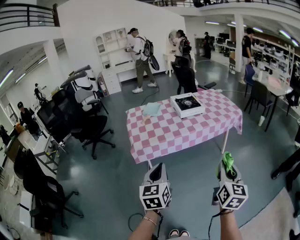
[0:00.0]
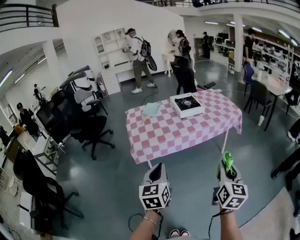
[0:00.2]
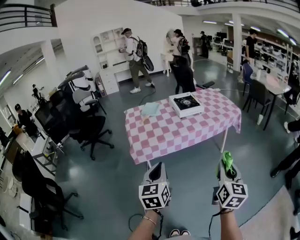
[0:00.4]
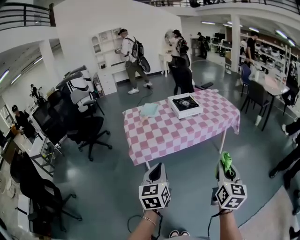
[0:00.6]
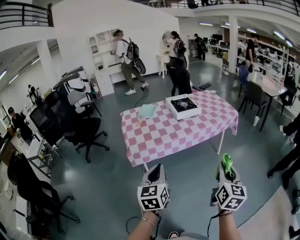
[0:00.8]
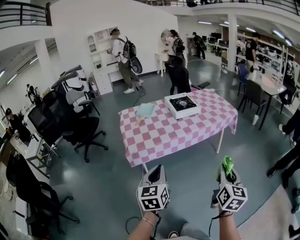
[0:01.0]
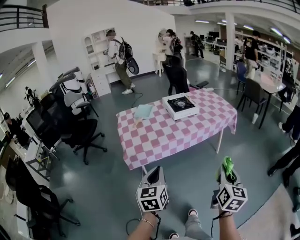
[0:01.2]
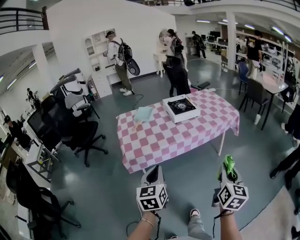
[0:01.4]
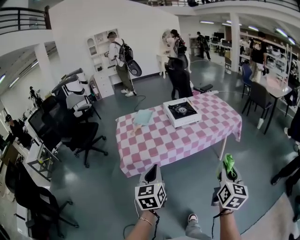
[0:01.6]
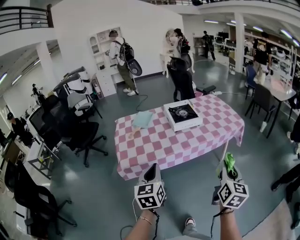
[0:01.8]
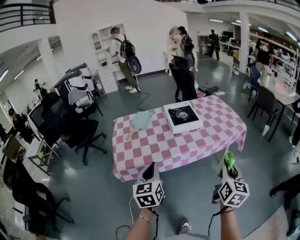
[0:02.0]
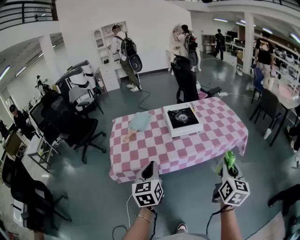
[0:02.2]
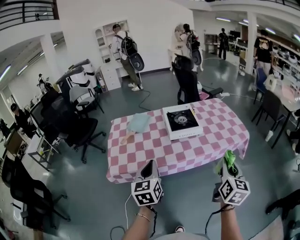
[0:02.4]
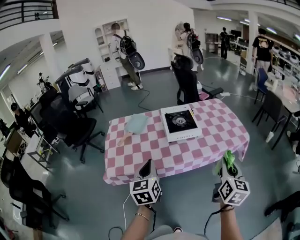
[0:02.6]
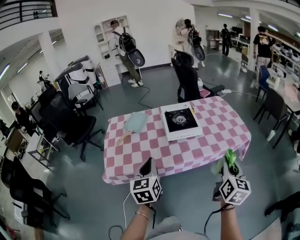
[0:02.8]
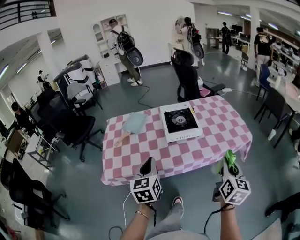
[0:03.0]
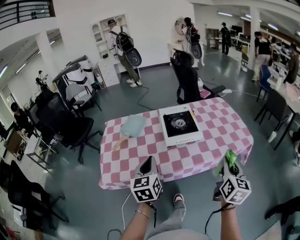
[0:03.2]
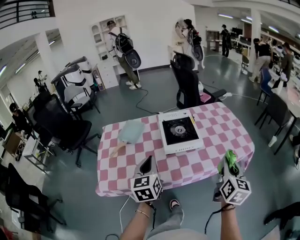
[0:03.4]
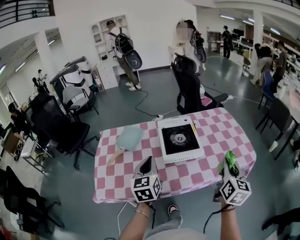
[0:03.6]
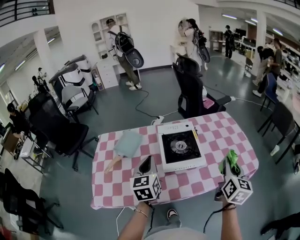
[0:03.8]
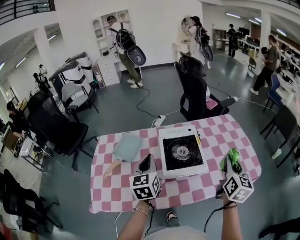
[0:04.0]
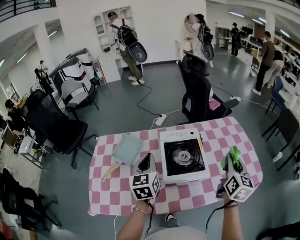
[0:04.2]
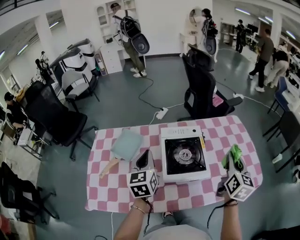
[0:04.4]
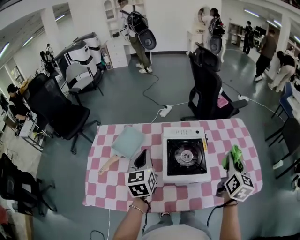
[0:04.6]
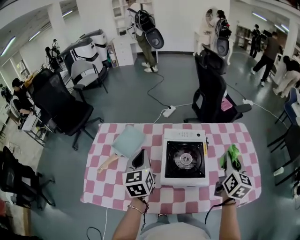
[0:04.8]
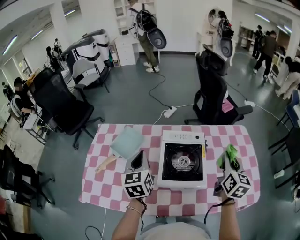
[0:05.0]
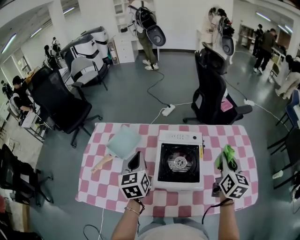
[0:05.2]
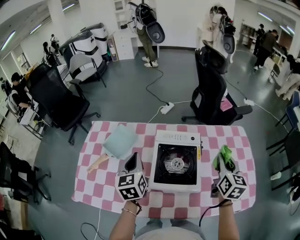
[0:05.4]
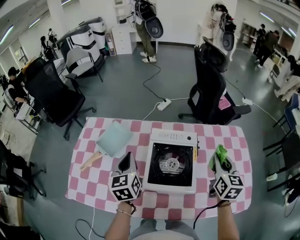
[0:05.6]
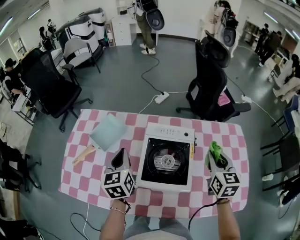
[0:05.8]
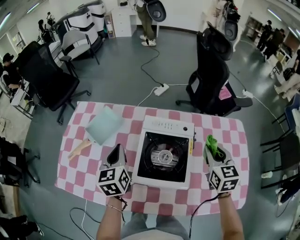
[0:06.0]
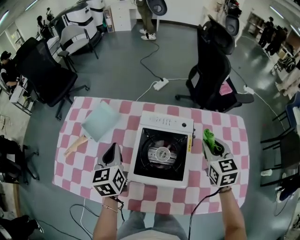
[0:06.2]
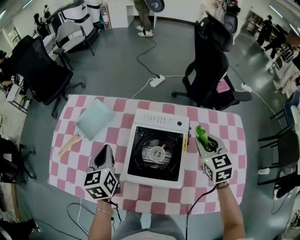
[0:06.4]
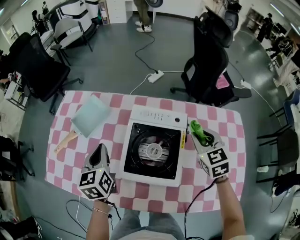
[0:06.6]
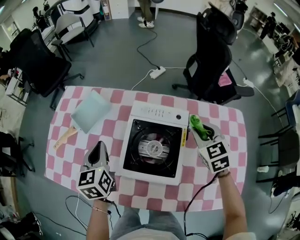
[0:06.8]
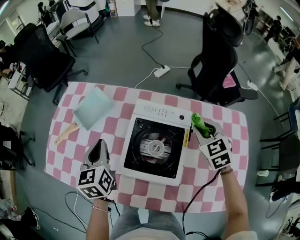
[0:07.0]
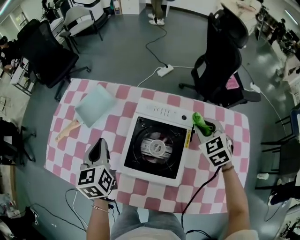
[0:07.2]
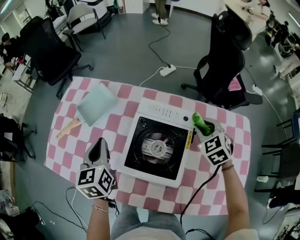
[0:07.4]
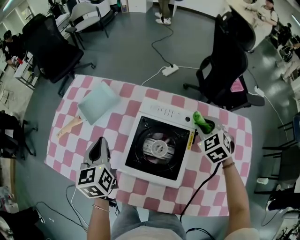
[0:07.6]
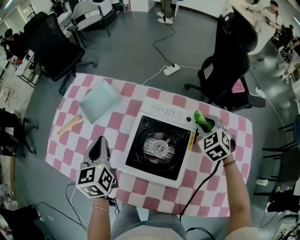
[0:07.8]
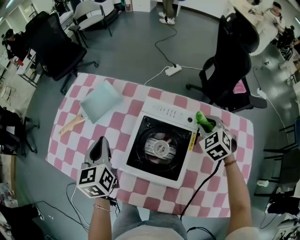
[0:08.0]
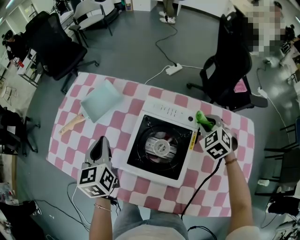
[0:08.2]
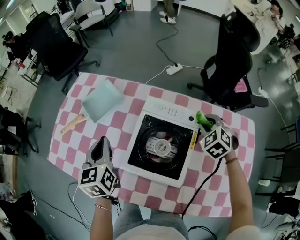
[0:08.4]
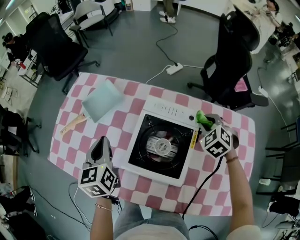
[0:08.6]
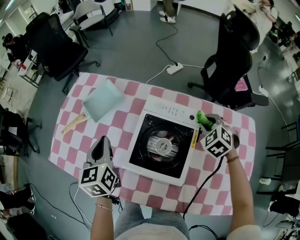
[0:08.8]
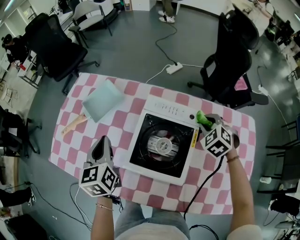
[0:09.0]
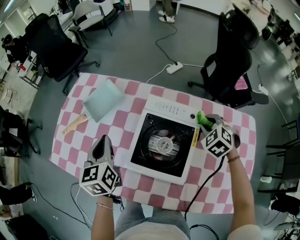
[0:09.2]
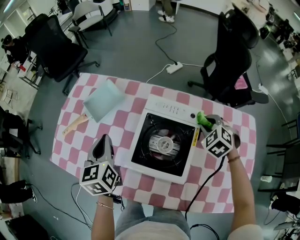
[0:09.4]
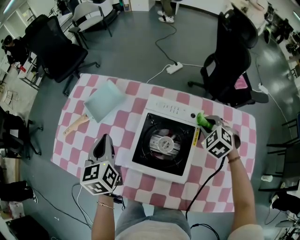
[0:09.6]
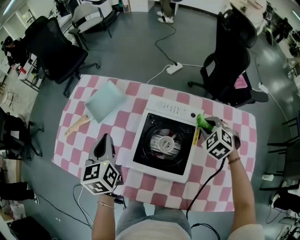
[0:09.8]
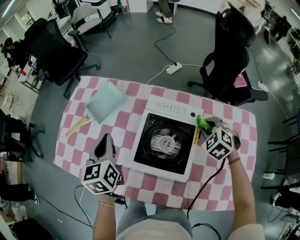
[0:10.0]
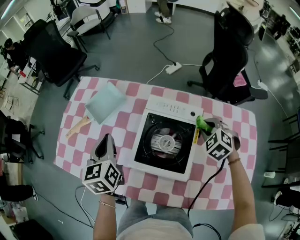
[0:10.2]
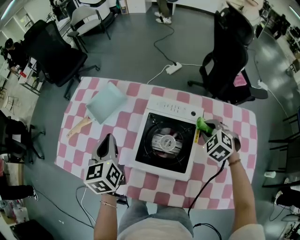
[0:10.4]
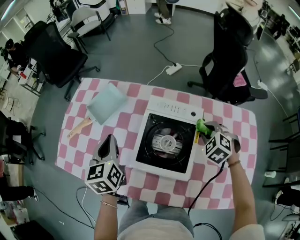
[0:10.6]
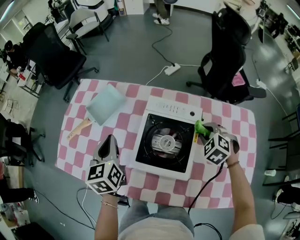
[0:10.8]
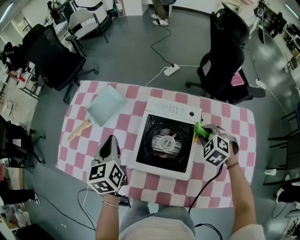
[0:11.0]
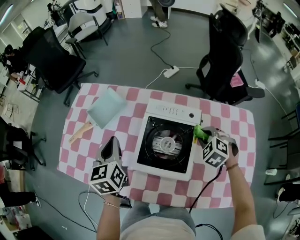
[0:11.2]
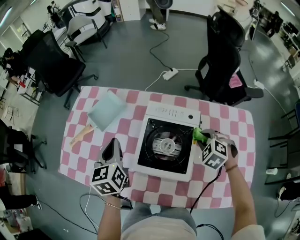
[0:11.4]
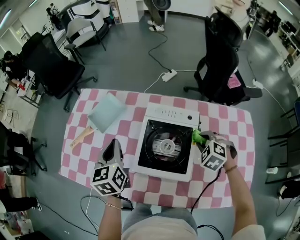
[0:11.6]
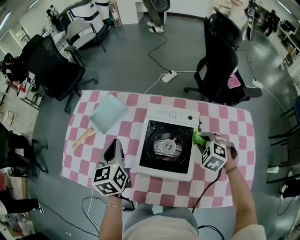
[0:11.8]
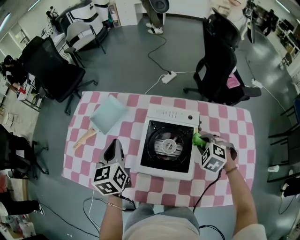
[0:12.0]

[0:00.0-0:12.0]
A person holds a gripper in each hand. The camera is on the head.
0.0 to 1.6 s: Both grippers move forward, about 15 cm.
1.6 to 3.0 s: Both grippers travel together forward, approximately 25 cm.
3.0 to 4.4 s: Both grippers travel together forward, about 35 cm.
4.4 to 6.0 s: The right gripper heads forward and downward, covering roughly 20 cm, and changes its angle by approximately 40 degrees. Meanwhile the left gripper is displaced downward by some 5 cm.
6.0 to 7.6 s: The right gripper goes approximately 15 cm forward and downward, and twists some 40 degrees counterclockwise, seen from behind.
7.6 to 10.4 s: The grippers stay close to where they were, moving slightly.
10.4 to 12.0 s: The right gripper travels backward by some 5 cm.

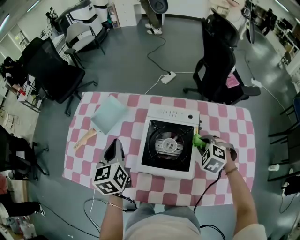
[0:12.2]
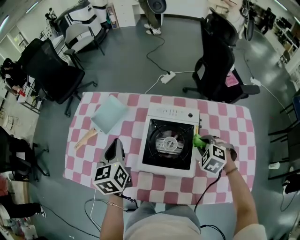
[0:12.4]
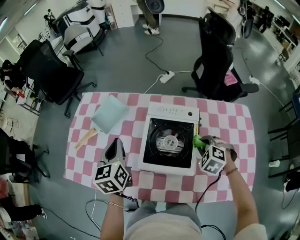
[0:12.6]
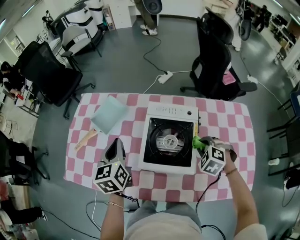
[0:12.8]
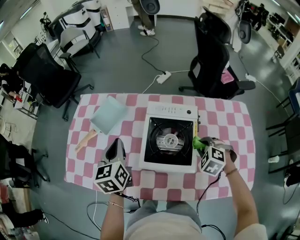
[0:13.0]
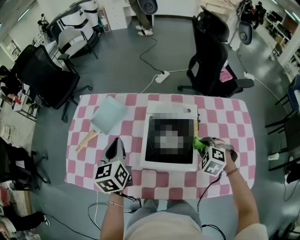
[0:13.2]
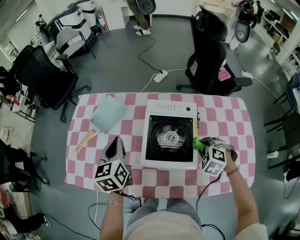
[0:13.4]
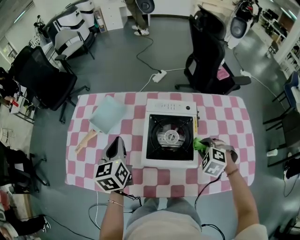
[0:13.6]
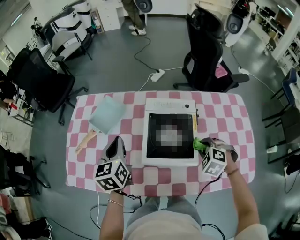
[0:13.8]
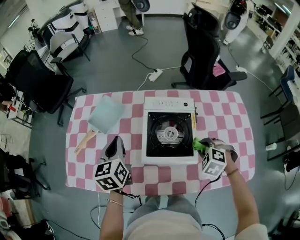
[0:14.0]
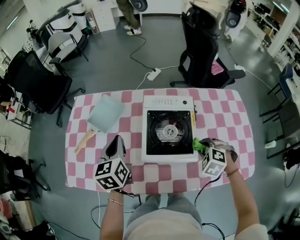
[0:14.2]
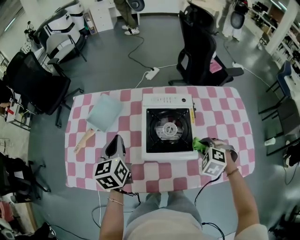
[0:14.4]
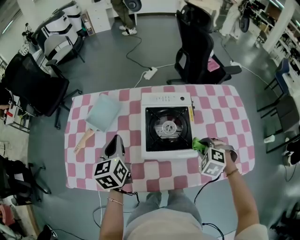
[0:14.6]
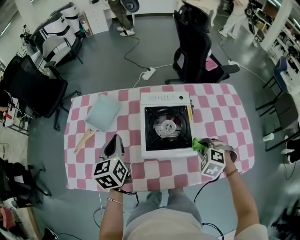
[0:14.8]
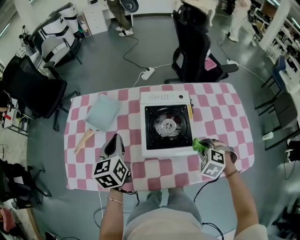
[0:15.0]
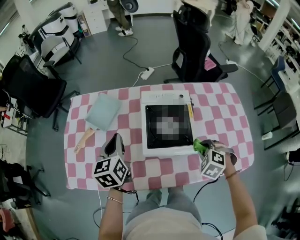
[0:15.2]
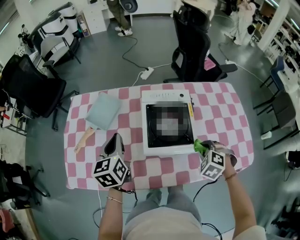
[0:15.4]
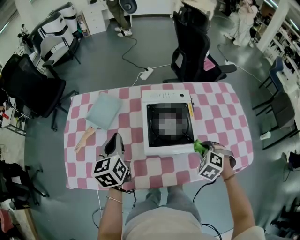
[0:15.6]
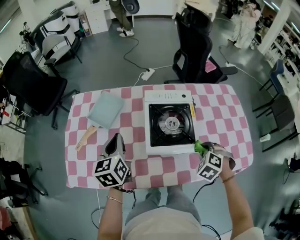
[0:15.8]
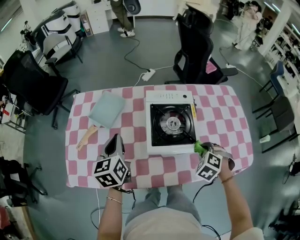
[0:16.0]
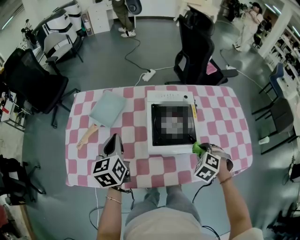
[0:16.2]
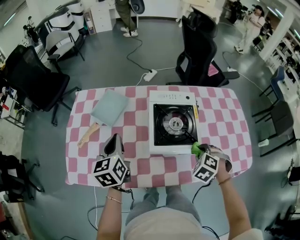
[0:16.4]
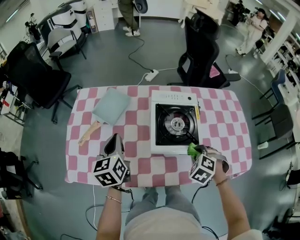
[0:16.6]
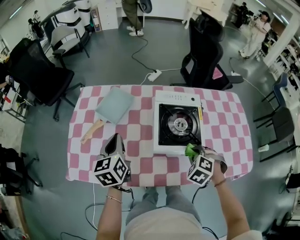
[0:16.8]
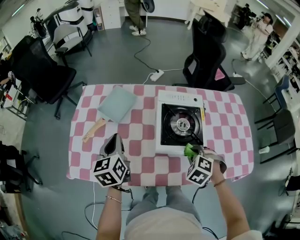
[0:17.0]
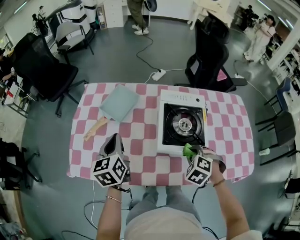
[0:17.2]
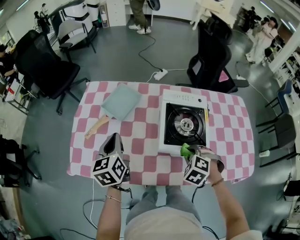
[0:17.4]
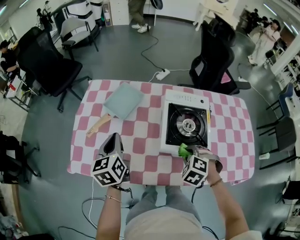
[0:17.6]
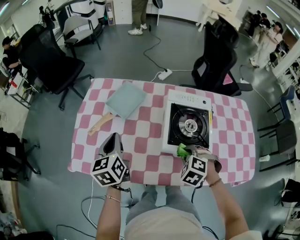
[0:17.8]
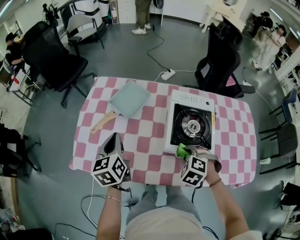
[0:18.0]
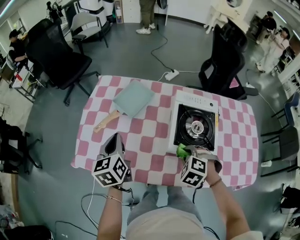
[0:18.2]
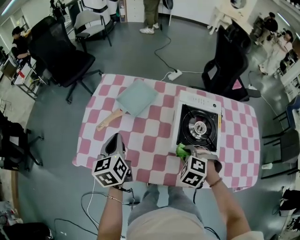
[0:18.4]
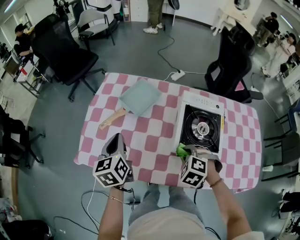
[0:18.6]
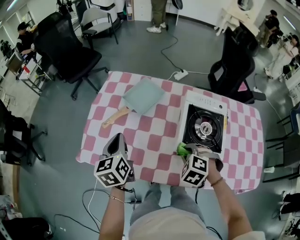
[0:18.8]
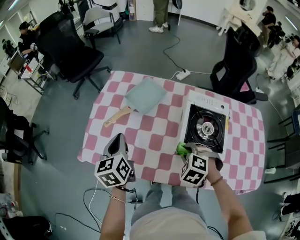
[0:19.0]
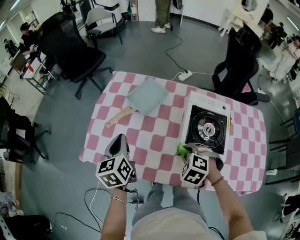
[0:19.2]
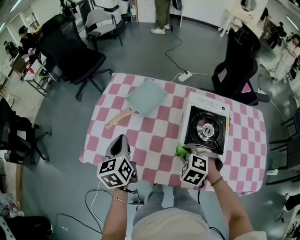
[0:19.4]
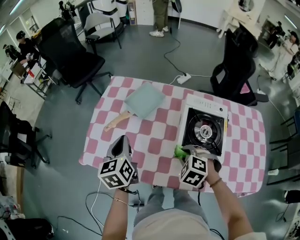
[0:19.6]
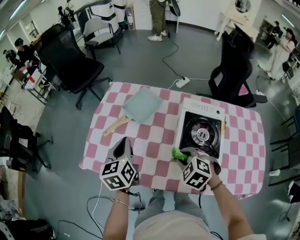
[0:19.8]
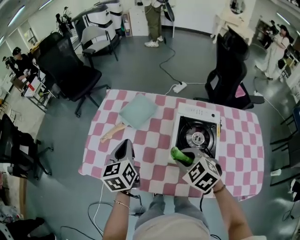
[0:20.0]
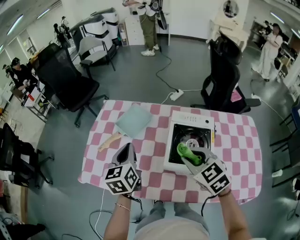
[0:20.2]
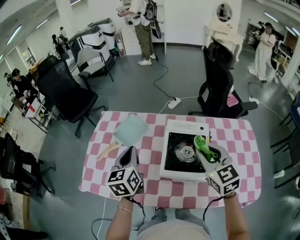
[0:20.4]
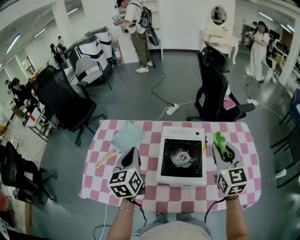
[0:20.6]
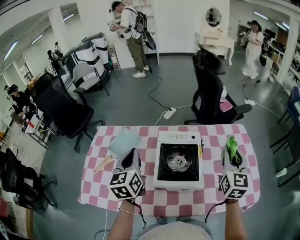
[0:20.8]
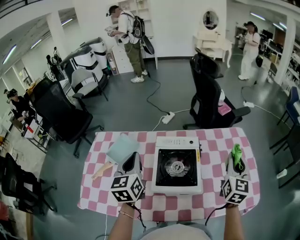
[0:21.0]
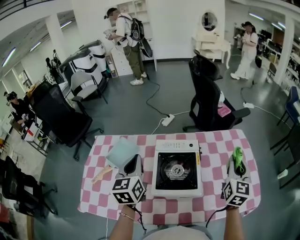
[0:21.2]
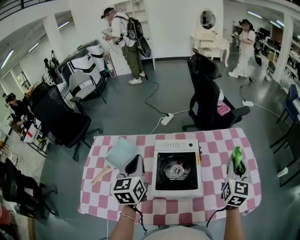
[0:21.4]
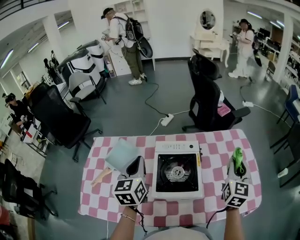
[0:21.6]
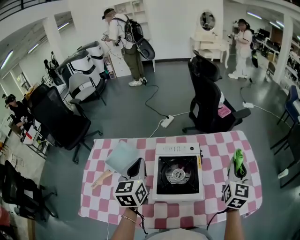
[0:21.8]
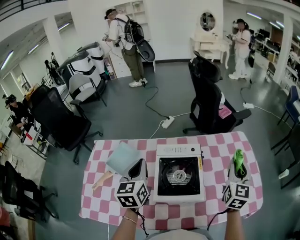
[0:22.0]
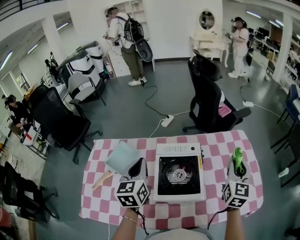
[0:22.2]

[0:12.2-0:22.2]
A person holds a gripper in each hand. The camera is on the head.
12.2 to 13.6 s: The right gripper travels backward by approximately 5 cm.
13.6 to 15.0 s: The right gripper is displaced backward by about 5 cm.
15.0 to 16.4 s: The left gripper moves approximately 5 cm.
16.4 to 18.0 s: The left gripper is displaced to the left by roughly 10 cm; the right gripper heads to the left, covering about 15 cm.
18.0 to 19.4 s: The right gripper is displaced to the left by roughly 5 cm.
19.4 to 20.8 s: The left gripper moves roughly 25 cm, and changes its angle by about 20 degrees; the right gripper shifts by about 40 cm, and tips its fingers upward by approximately 60 degrees.
20.8 to 22.2 s: The left gripper shifts approximately 5 cm forward.

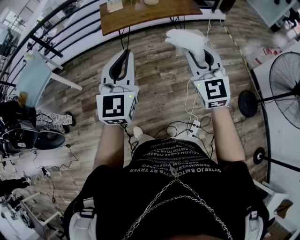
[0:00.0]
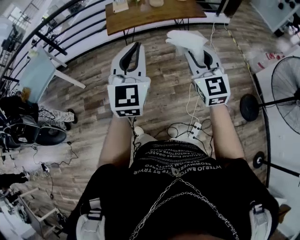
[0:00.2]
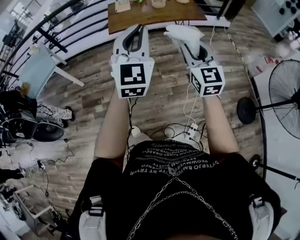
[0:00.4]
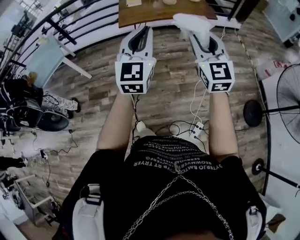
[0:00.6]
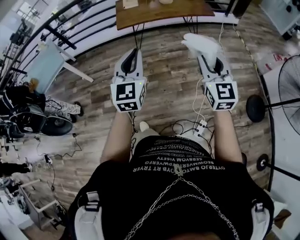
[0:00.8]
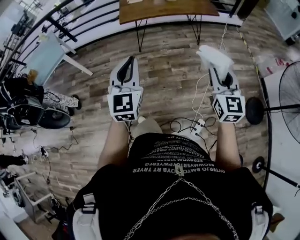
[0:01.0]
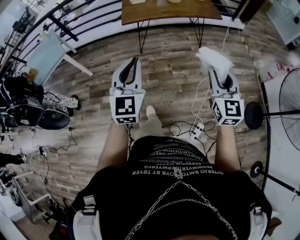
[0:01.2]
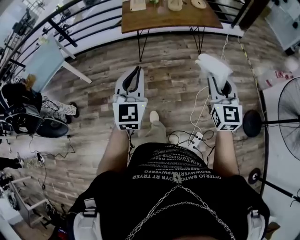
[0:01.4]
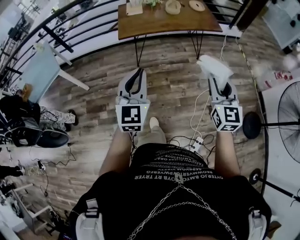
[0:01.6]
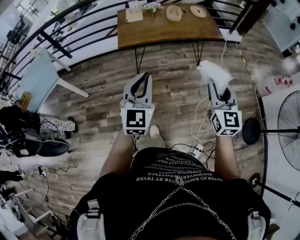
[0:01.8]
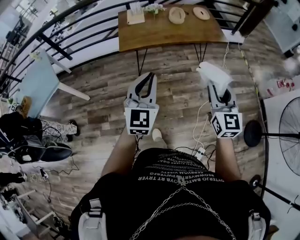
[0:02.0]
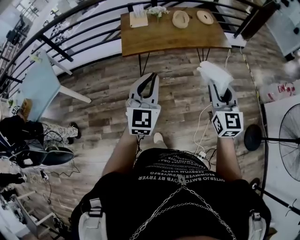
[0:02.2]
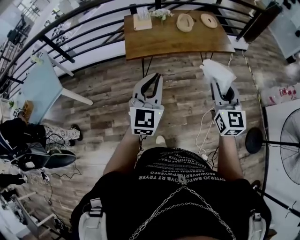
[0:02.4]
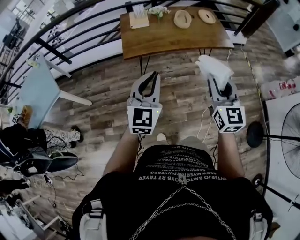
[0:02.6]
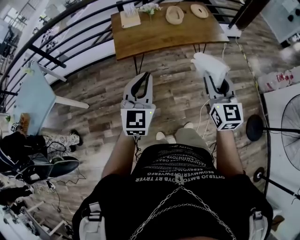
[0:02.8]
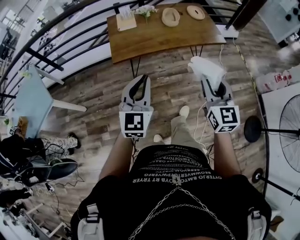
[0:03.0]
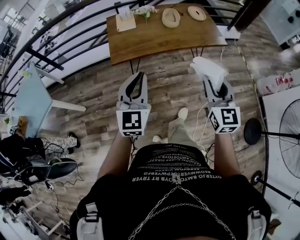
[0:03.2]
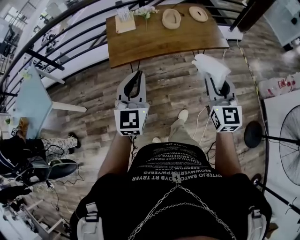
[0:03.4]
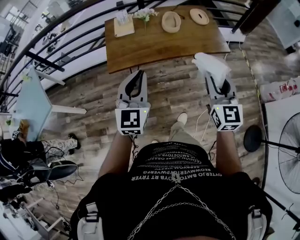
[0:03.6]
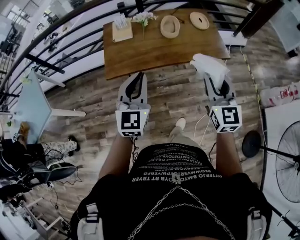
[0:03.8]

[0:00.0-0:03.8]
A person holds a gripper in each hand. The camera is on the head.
0.0 to 1.2 s: The left gripper shifts approximately 5 cm downward, while the right gripper moves backward and downward, about 5 cm.
1.2 to 2.6 s: Both grippers move forward, approximately 30 cm.
2.6 to 3.8 s: The grippers both shift forward and to the right by about 20 cm.
